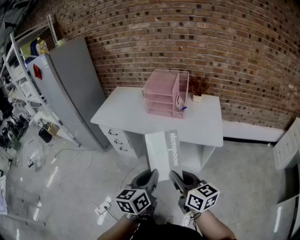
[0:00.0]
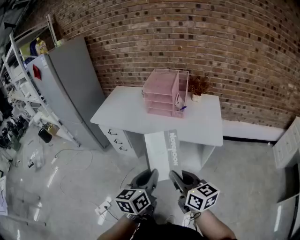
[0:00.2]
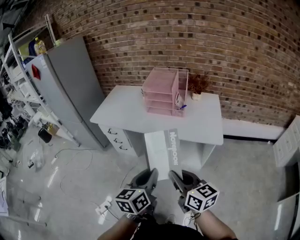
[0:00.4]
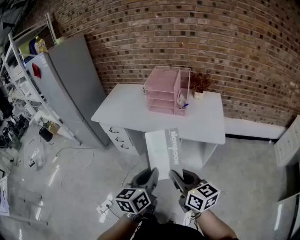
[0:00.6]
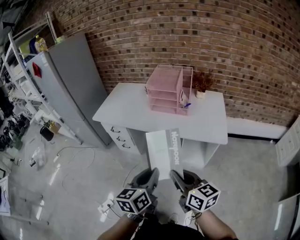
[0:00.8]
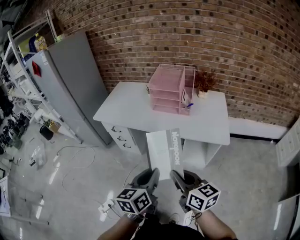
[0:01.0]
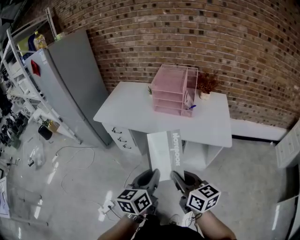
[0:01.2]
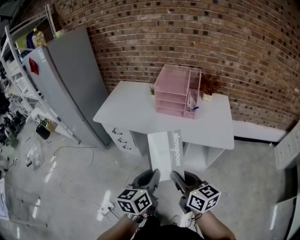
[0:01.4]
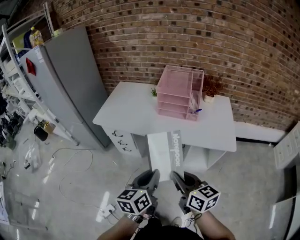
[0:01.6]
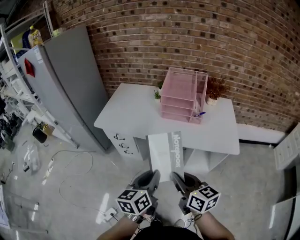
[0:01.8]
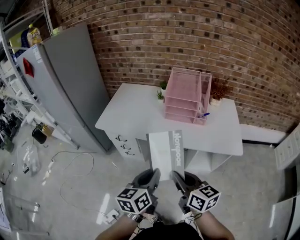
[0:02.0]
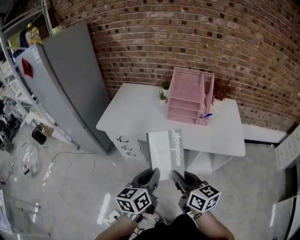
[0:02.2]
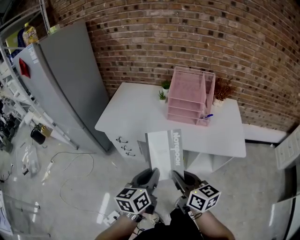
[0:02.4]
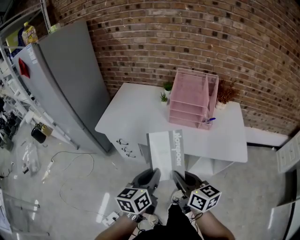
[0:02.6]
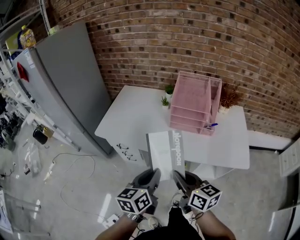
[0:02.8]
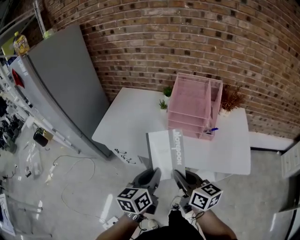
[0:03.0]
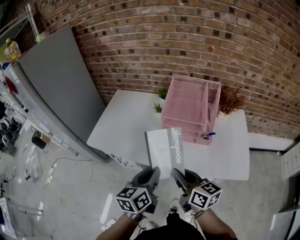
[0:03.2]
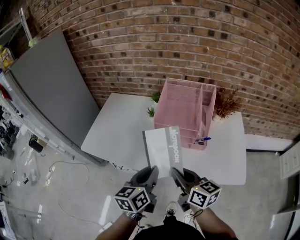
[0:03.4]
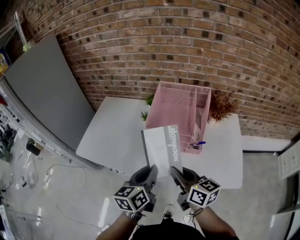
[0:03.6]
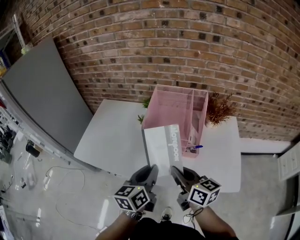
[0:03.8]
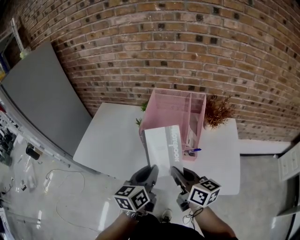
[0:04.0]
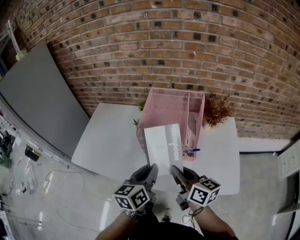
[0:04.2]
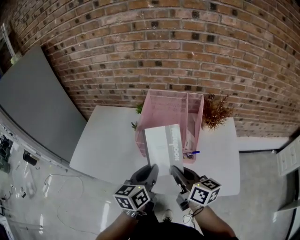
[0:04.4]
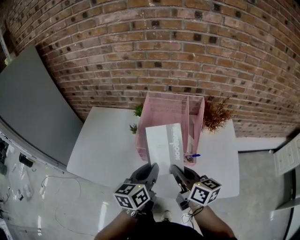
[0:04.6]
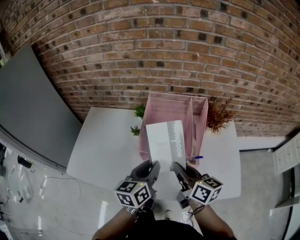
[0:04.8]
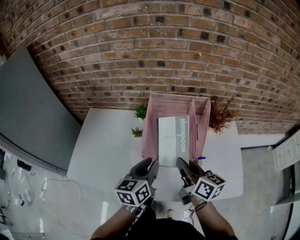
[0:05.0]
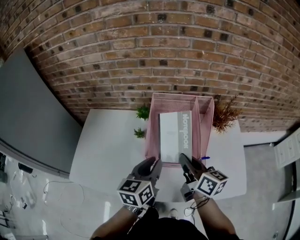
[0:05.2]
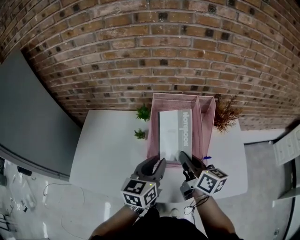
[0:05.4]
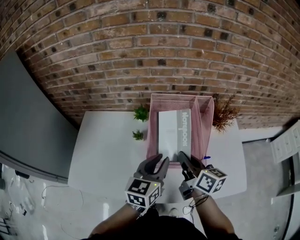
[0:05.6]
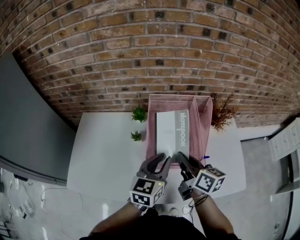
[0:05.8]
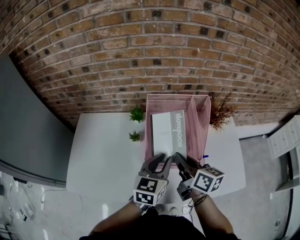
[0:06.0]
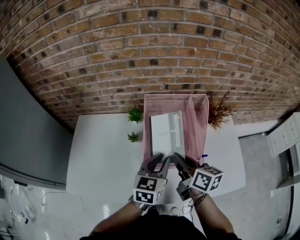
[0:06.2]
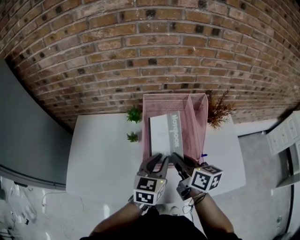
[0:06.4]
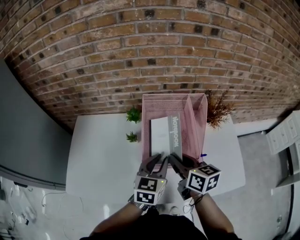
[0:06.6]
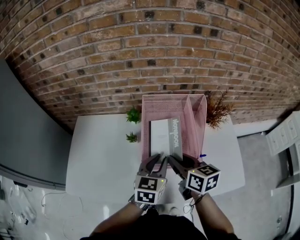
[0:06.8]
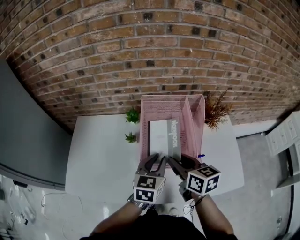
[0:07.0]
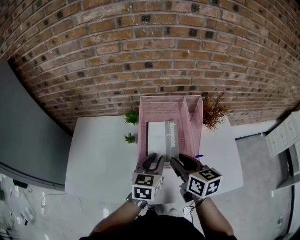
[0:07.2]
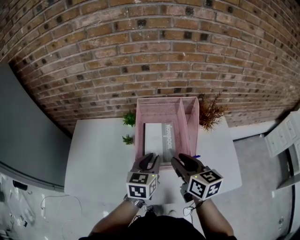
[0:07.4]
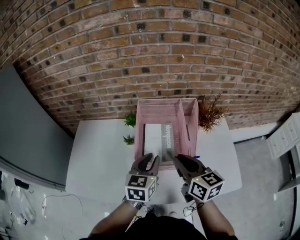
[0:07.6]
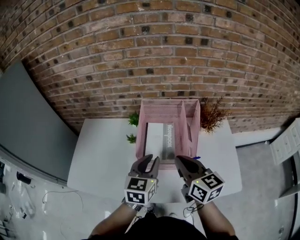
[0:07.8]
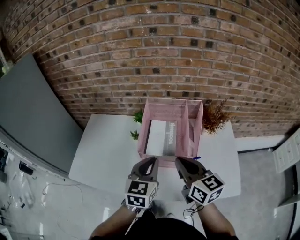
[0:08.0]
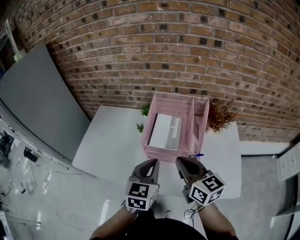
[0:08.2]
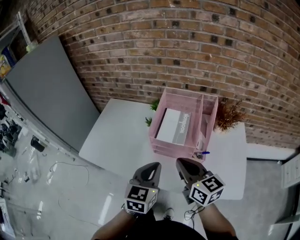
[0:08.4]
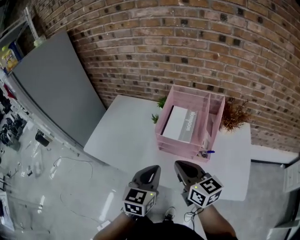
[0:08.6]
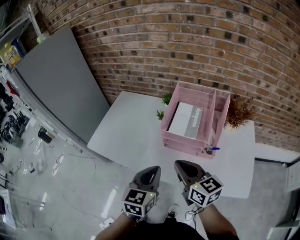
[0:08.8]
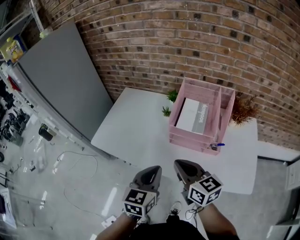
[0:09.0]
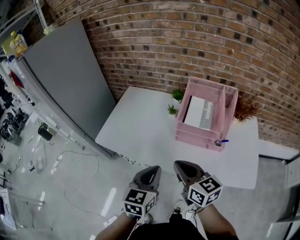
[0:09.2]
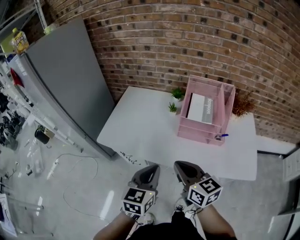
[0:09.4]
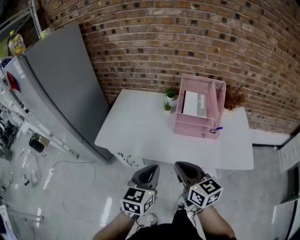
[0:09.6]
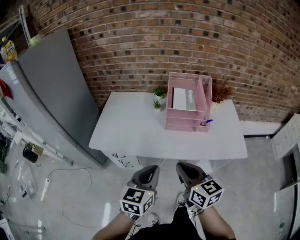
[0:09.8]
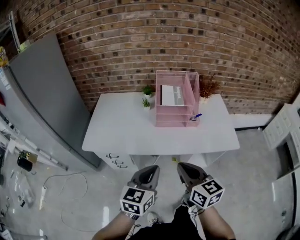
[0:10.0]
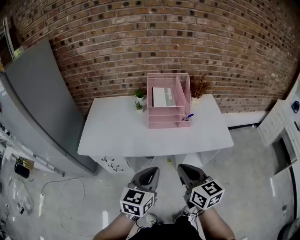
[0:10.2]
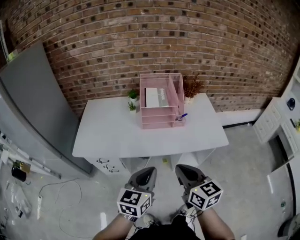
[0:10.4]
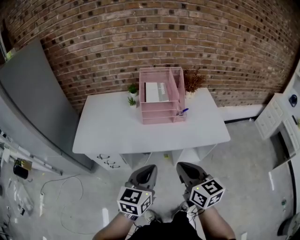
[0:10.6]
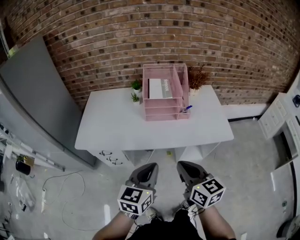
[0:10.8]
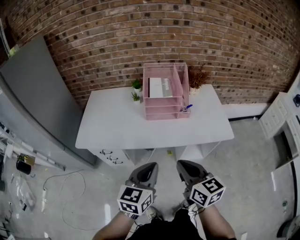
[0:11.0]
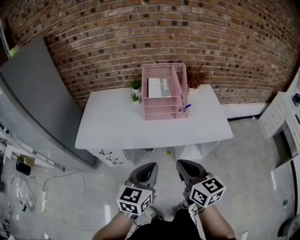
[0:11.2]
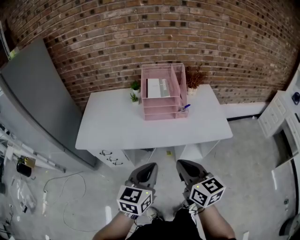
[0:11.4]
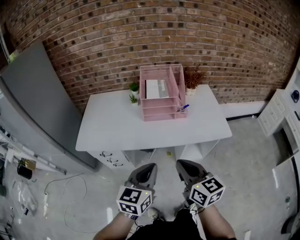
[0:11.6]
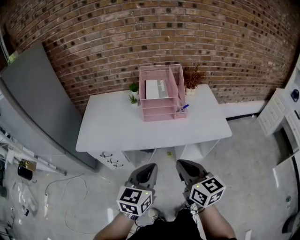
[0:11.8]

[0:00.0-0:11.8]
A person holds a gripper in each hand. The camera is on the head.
0:00.0 to 0:01.4: The grippers both shift to the left and forward by about 10 cm.
0:01.4 to 0:03.0: Both grippers travel together forward, approximately 25 cm.
0:03.0 to 0:04.4: Both grippers move forward and to the right, roughly 20 cm.
0:04.4 to 0:06.0: Both grippers travel together forward, roughly 10 cm. The left gripper rotates some 30 degrees.
0:06.0 to 0:07.4: The right gripper opens its fingers.
0:07.4 to 0:08.8: The right gripper goes some 15 cm backward and to the left, swivels about 30 degrees, and closes its fingers. Meanwhile the left gripper is displaced backward by roughly 20 cm.
0:08.8 to 0:10.4: The left gripper shifts by approximately 20 cm, and swivels approximately 30 degrees, while the right gripper changes place by roughly 25 cm, and rotates about 30 degrees.
0:10.4 to 0:11.8: There are only small adjustments of the grippers.

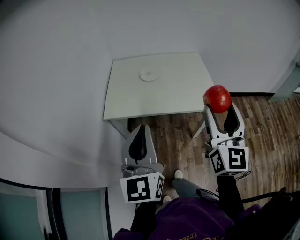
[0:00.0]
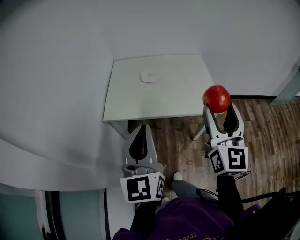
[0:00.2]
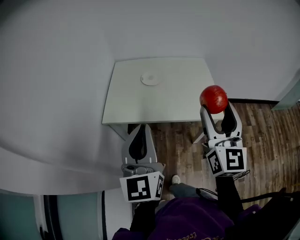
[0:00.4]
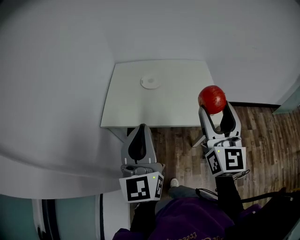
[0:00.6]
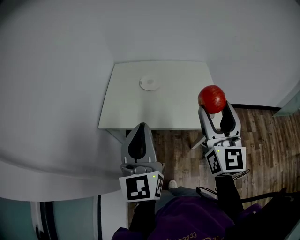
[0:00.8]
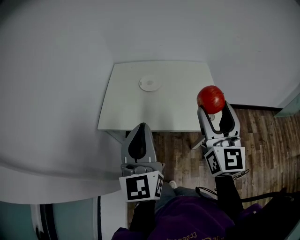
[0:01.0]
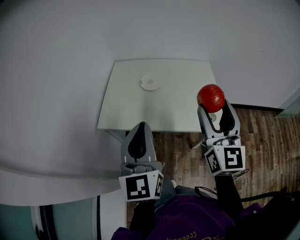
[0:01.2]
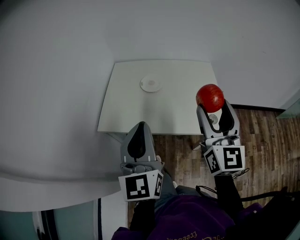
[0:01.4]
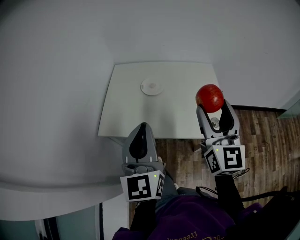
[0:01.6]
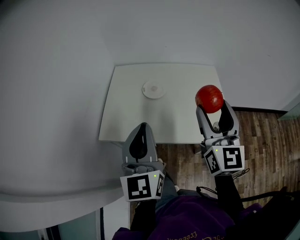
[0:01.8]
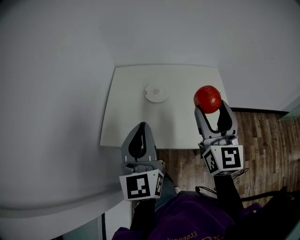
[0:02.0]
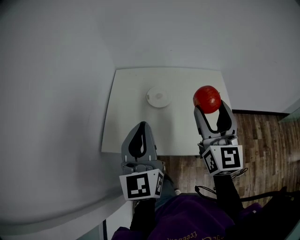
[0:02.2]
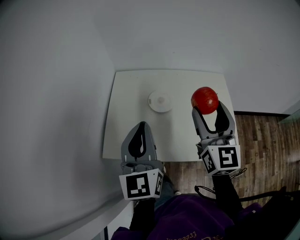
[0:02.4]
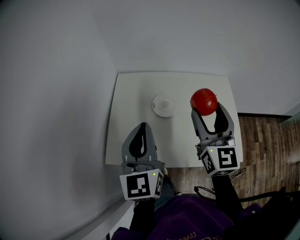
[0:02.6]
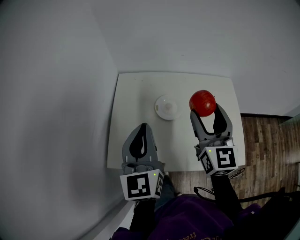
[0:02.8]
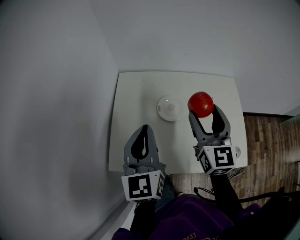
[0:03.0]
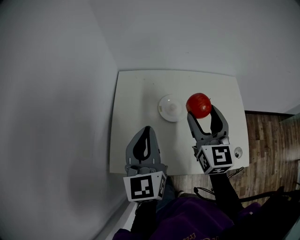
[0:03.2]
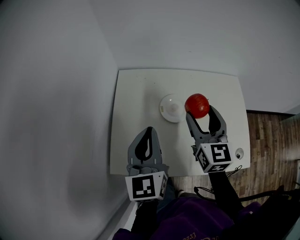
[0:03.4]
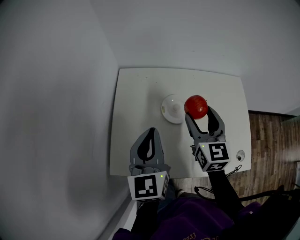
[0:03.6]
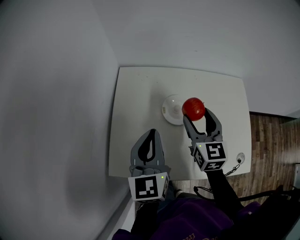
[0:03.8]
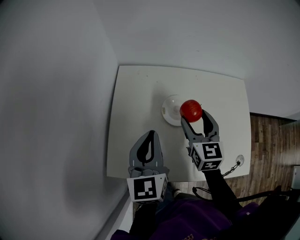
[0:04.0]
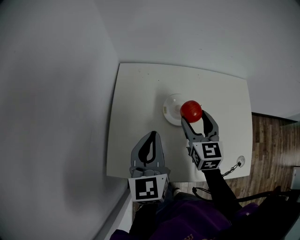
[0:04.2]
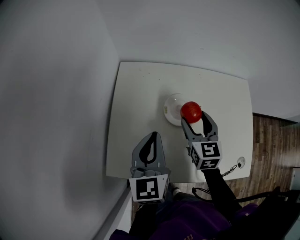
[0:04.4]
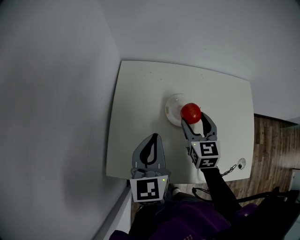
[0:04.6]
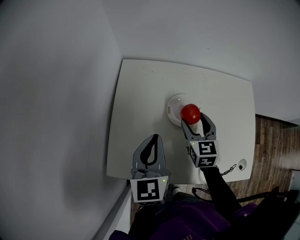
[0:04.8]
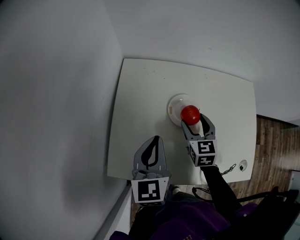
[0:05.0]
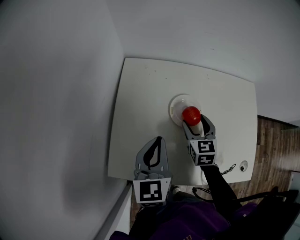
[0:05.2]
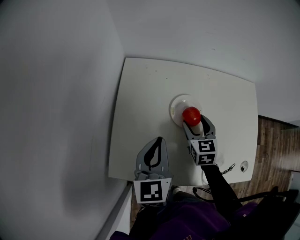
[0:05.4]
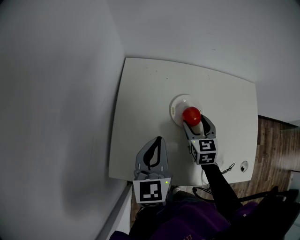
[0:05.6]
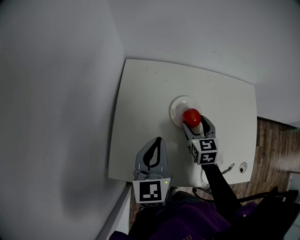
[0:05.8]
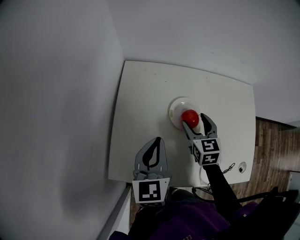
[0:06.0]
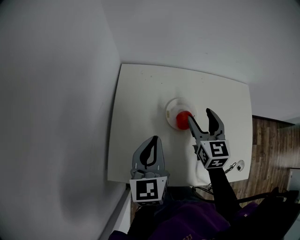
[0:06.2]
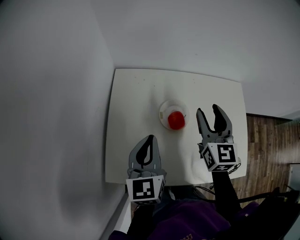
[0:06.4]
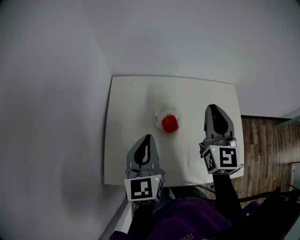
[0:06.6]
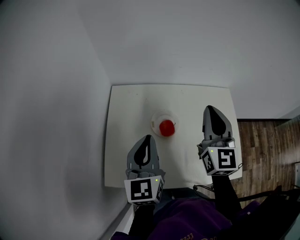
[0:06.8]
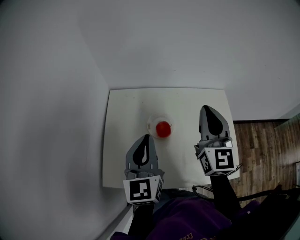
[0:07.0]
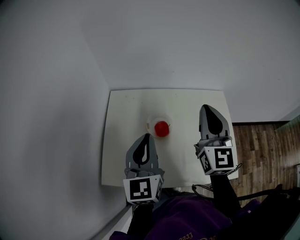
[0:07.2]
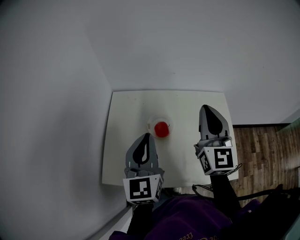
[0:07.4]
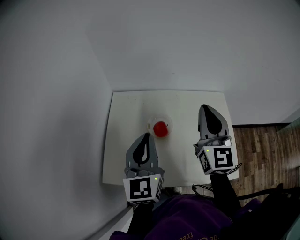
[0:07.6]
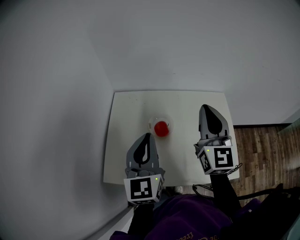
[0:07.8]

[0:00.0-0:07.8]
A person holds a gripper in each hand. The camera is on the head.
0:00.0 to 0:01.6: The grippers both shift forward by about 15 cm.
0:01.6 to 0:03.2: The right gripper travels forward, to the left and downward by roughly 30 cm; the left gripper shifts some 25 cm forward and to the left.
0:03.2 to 0:04.6: The right gripper moves downward and forward, about 15 cm, while the left gripper shifts roughly 10 cm downward.
0:06.2 to 0:07.8: The two grippers go roughly 20 cm upward and to the right. The right gripper rotates roughly 30 degrees, and closes up.

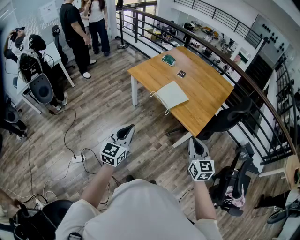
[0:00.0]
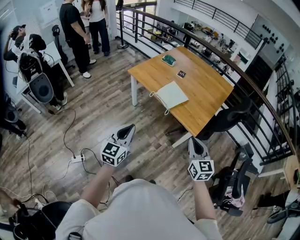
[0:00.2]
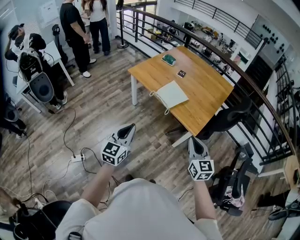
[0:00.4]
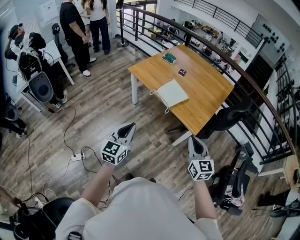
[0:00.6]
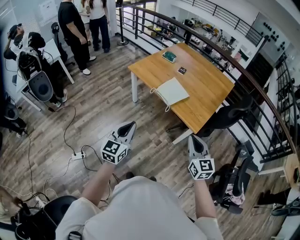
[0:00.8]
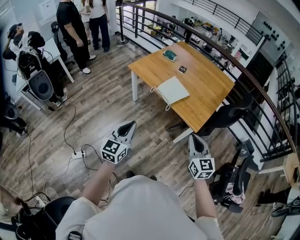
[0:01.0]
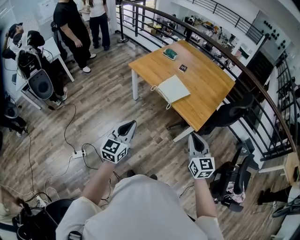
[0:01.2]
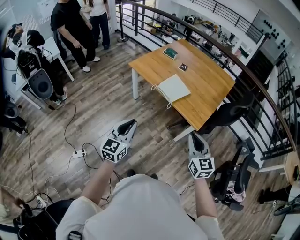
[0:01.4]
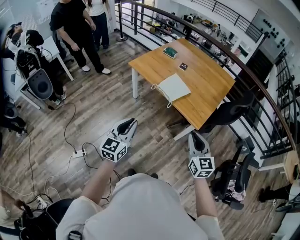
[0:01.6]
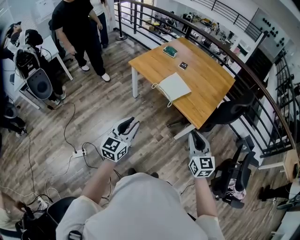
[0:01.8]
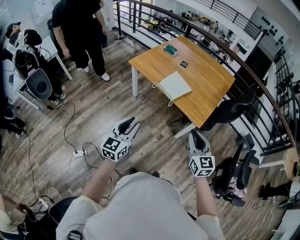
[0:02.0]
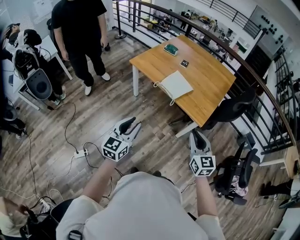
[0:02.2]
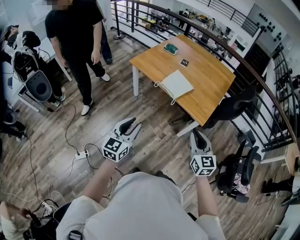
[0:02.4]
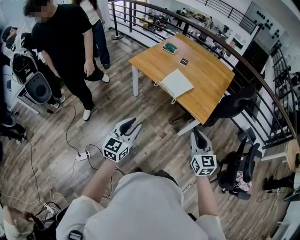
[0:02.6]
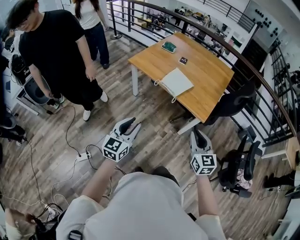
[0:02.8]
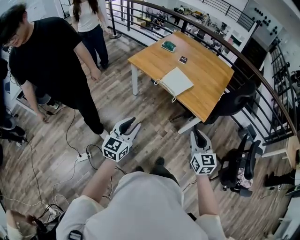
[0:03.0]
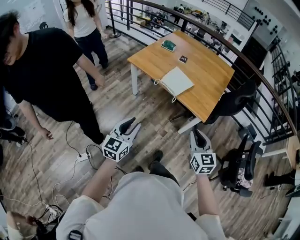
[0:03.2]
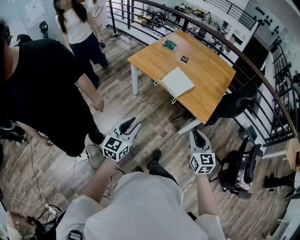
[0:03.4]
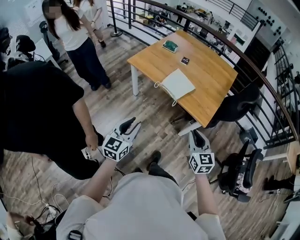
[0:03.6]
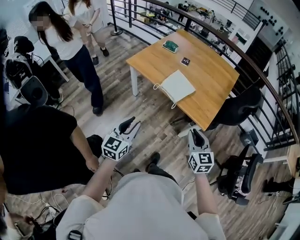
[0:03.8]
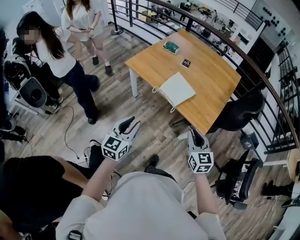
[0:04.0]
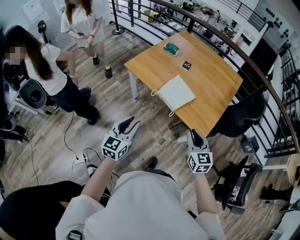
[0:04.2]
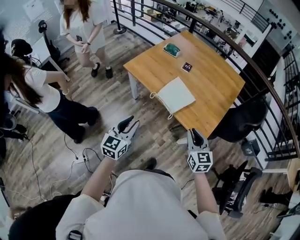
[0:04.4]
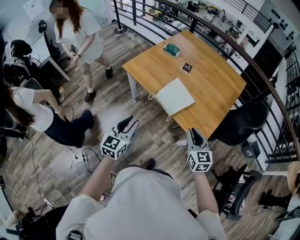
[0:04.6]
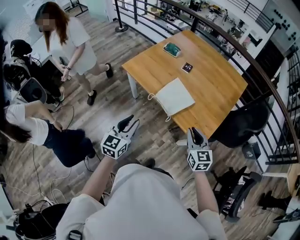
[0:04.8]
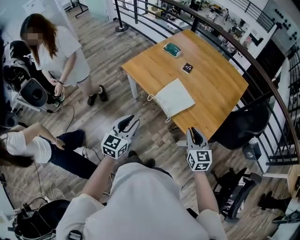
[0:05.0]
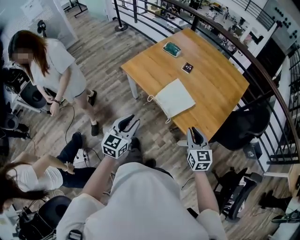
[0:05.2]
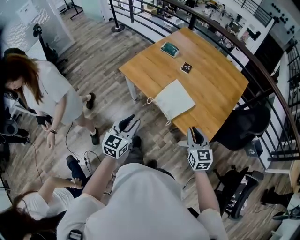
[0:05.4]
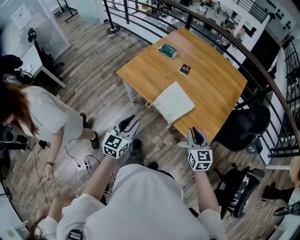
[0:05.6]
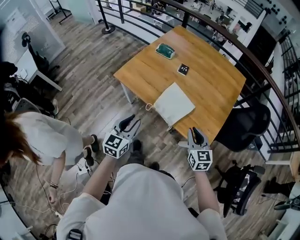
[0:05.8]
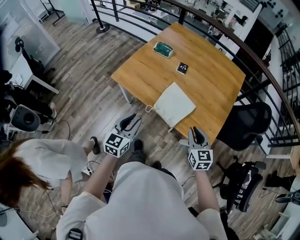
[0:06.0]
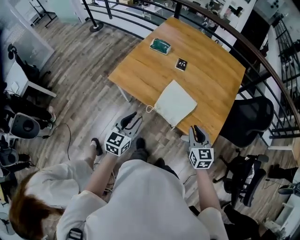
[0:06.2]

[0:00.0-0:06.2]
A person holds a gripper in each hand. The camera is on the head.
0:00.0 to 0:01.6: The grippers make only small movements.
0:01.6 to 0:03.2: The two grippers go roughly 5 cm to the left.
0:03.2 to 0:04.6: Both grippers travel together forward, about 25 cm.
0:04.6 to 0:06.2: The two grippers go some 15 cm forward.
